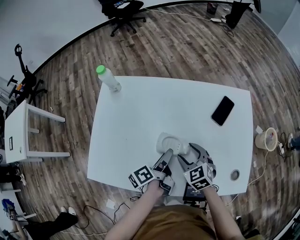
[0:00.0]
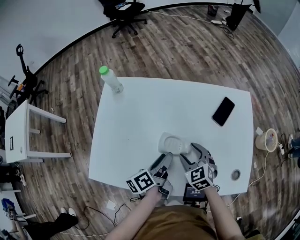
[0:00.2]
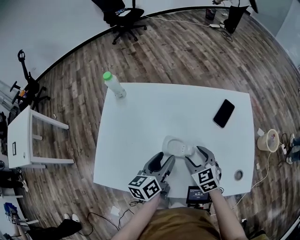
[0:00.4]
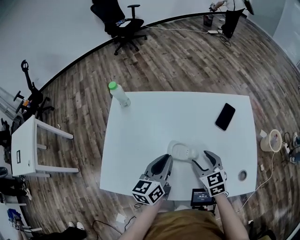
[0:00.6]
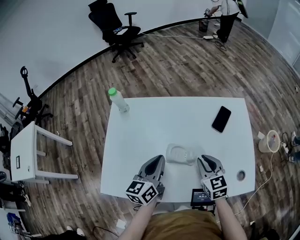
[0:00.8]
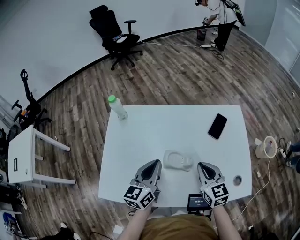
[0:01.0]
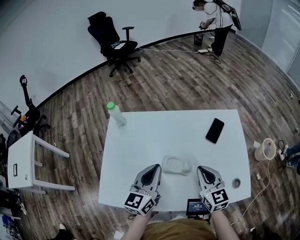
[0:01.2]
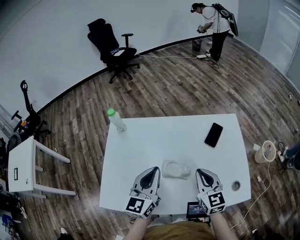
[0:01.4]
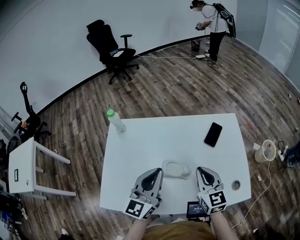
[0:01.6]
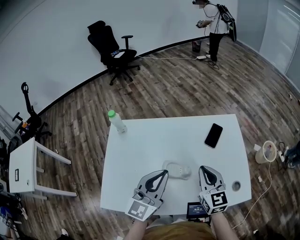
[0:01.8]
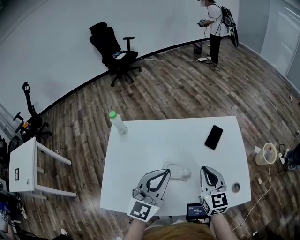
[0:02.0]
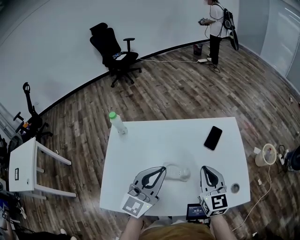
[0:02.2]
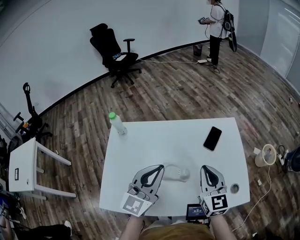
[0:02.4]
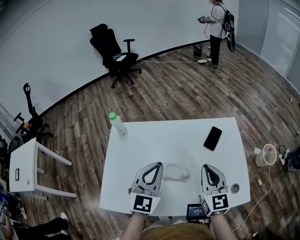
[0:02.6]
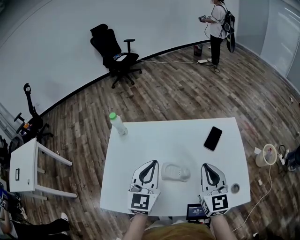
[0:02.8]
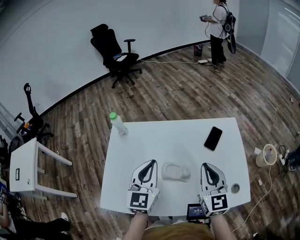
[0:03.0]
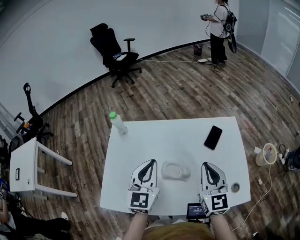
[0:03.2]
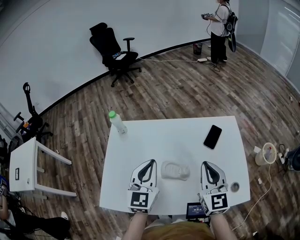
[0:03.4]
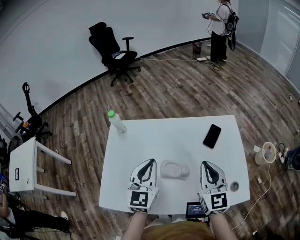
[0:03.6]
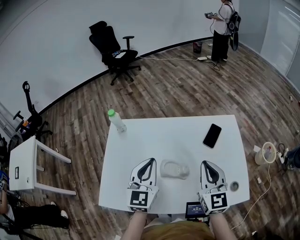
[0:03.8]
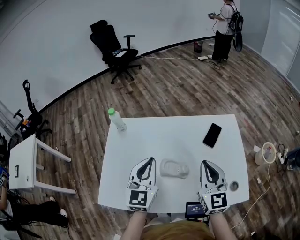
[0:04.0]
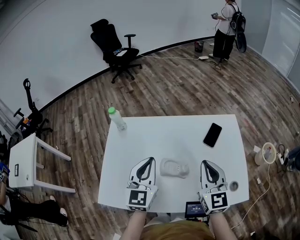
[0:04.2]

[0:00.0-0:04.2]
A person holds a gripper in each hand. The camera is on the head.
0.0 to 1.4 s: The two grippers go approximately 15 cm upward. The right gripper swivels roughly 40 degrees, and closes; the left gripper rolls clockwise, seen from behind, by roughly 80 degrees, and closes up.
1.4 to 2.8 s: The right gripper shifts roughly 10 cm upward.
2.8 to 4.2 s: Both grippers stay about where they are.

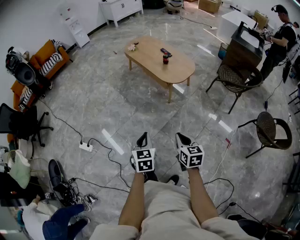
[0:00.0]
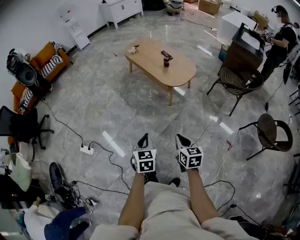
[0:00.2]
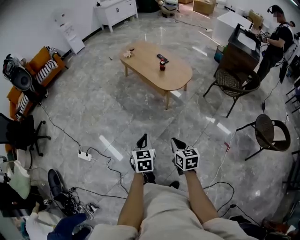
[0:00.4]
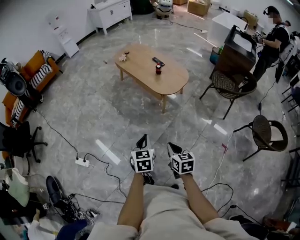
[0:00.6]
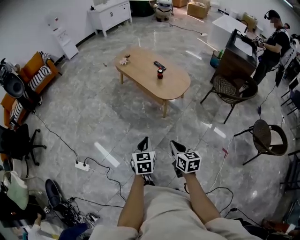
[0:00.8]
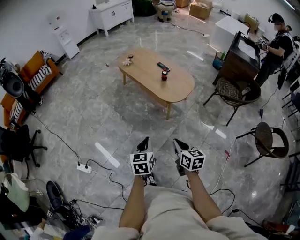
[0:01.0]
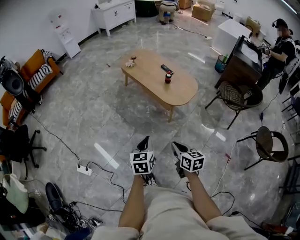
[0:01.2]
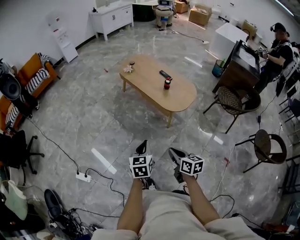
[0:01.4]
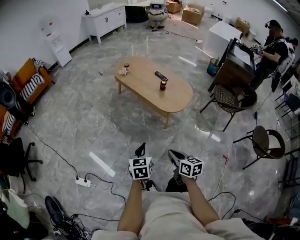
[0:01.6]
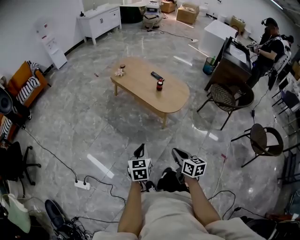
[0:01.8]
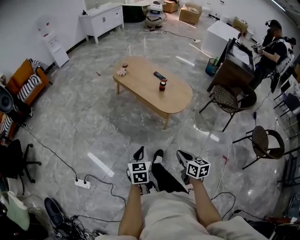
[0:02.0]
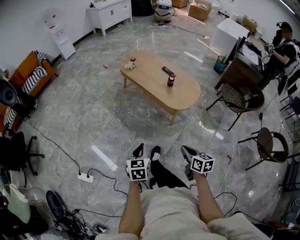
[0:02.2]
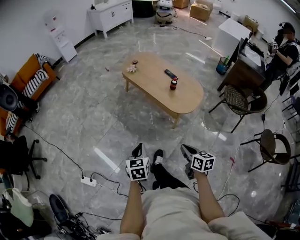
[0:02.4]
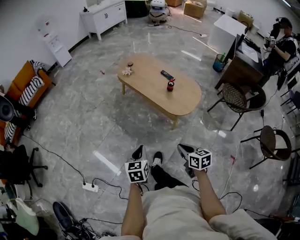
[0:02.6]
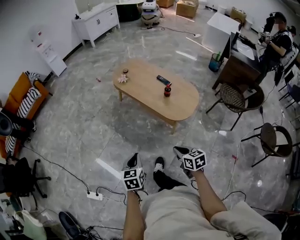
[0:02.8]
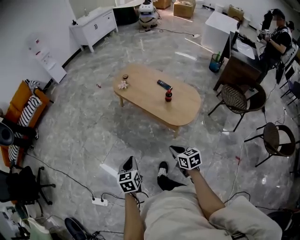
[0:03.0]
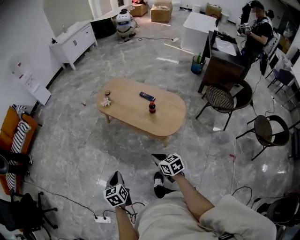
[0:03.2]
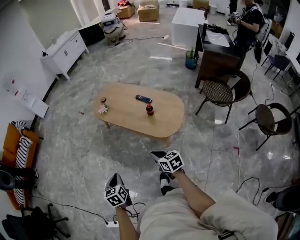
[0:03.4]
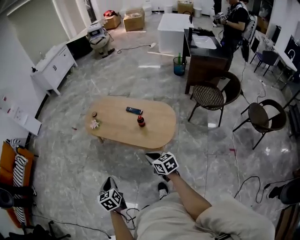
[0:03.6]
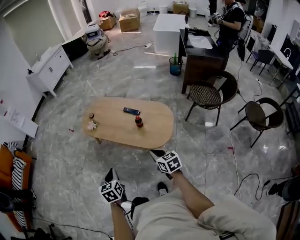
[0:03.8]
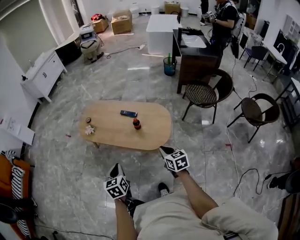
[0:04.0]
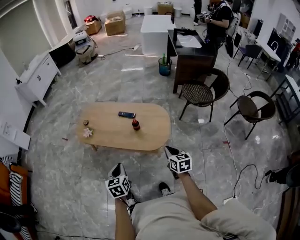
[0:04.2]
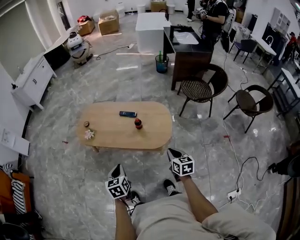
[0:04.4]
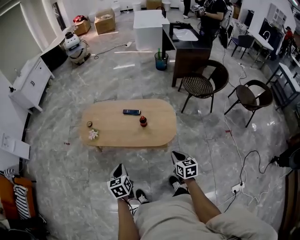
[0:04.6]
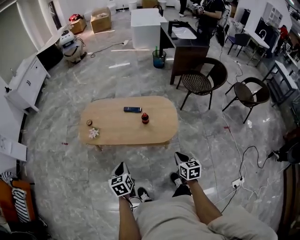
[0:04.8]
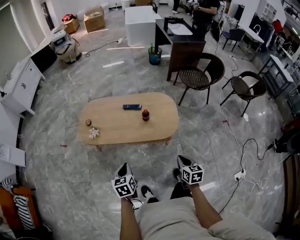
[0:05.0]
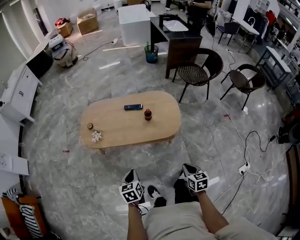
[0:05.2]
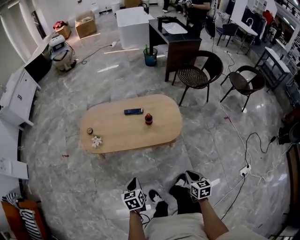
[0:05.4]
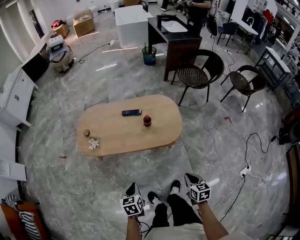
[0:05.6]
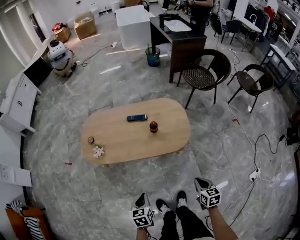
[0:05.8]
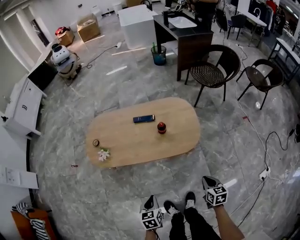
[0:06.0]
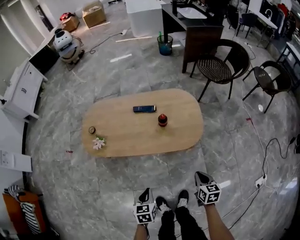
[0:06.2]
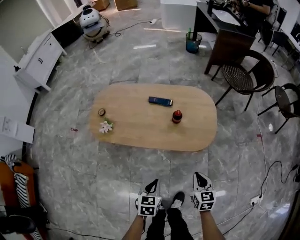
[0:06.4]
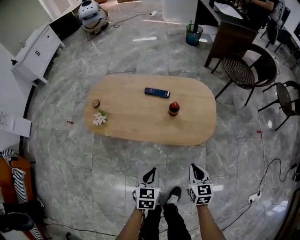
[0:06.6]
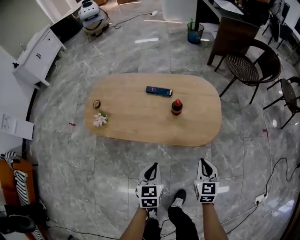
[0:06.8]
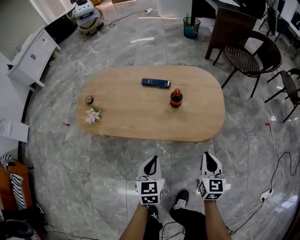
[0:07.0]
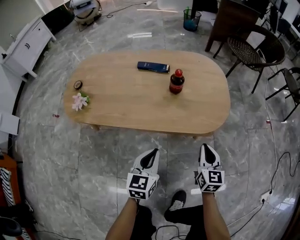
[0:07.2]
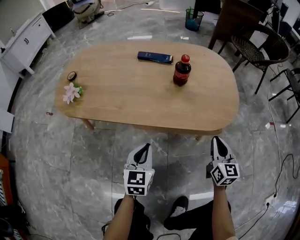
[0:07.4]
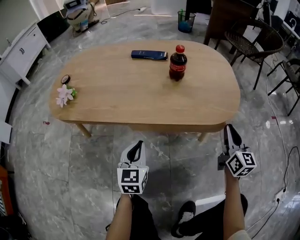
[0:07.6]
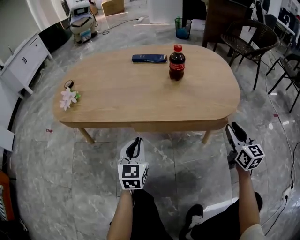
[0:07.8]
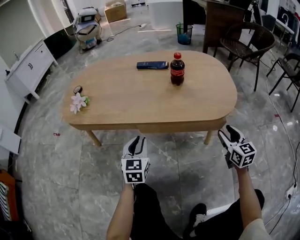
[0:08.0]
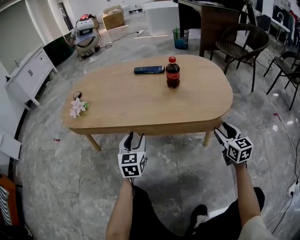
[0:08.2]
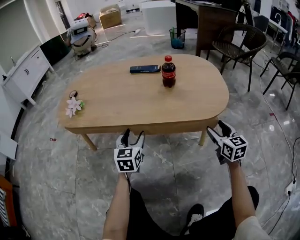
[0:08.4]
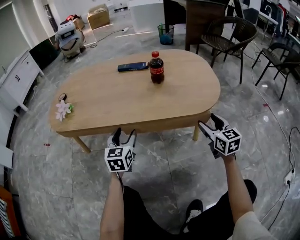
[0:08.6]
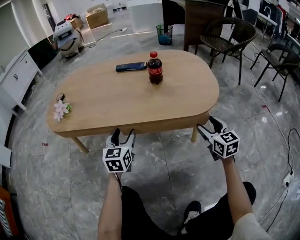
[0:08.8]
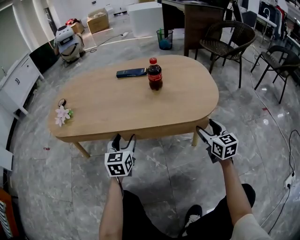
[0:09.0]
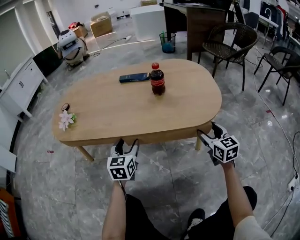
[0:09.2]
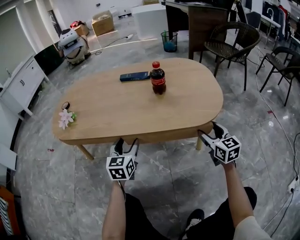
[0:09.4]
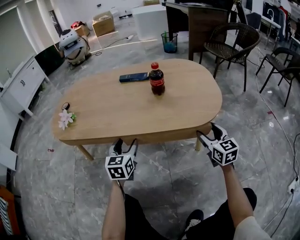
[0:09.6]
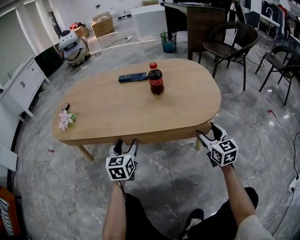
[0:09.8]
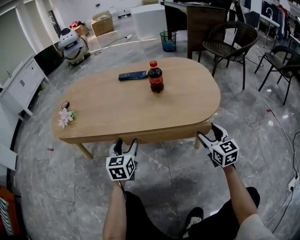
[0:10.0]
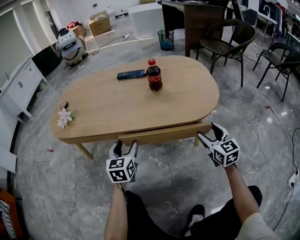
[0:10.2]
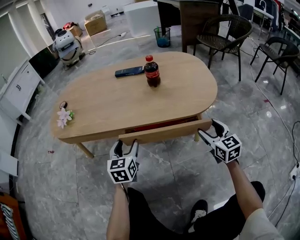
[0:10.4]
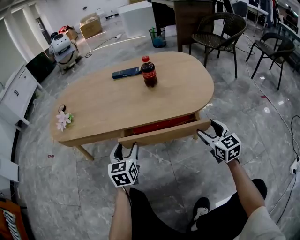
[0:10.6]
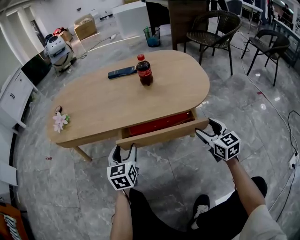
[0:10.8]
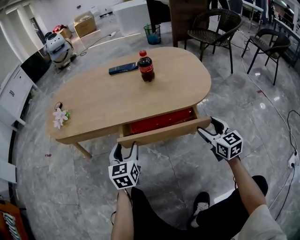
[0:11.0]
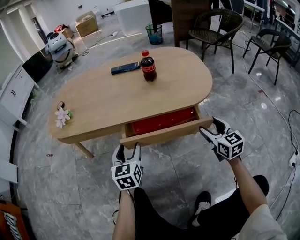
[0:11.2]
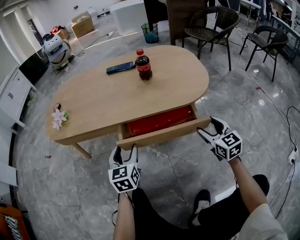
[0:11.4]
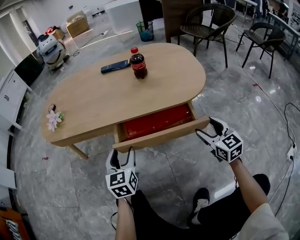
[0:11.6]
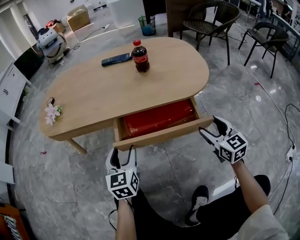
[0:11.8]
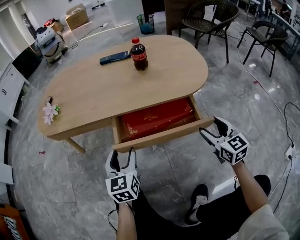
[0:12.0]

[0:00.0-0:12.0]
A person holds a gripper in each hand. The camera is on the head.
0.0 to 1.6 s: The left gripper heads forward, covering about 25 cm, while the right gripper moves forward and to the left, approximately 25 cm.
1.6 to 3.0 s: The left gripper heads forward and to the left, covering about 20 cm. Meanwhile the right gripper heads forward, covering about 20 cm.
3.0 to 4.4 s: The right gripper moves about 15 cm, and rotates about 40 degrees. The left gripper changes place by roughly 25 cm, and changes its angle by some 30 degrees.
4.4 to 6.0 s: The right gripper shifts approximately 20 cm downward, backward and to the left, and swivels some 20 degrees. The left gripper travels downward and to the left by about 20 cm, and changes its angle by roughly 20 degrees.
6.0 to 7.6 s: The grippers both shift downward and forward by approximately 35 cm. The left gripper changes its angle by roughly 30 degrees. Meanwhile the right gripper tips its fingers upward by some 40 degrees.
7.6 to 9.0 s: The right gripper ends up roughly 5 cm from where it was, and opens its fingers. Meanwhile the left gripper shifts about 5 cm forward, and opens up.
9.0 to 10.4 s: The grippers stay close to where they were, moving slightly.
10.4 to 12.0 s: The grippers both shift backward by approximately 10 cm.

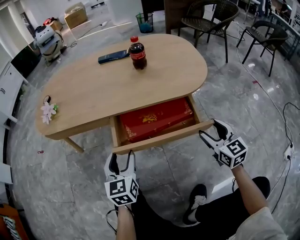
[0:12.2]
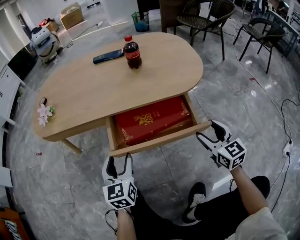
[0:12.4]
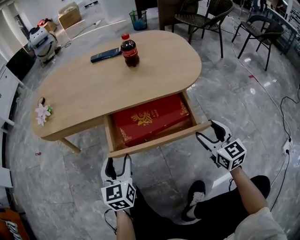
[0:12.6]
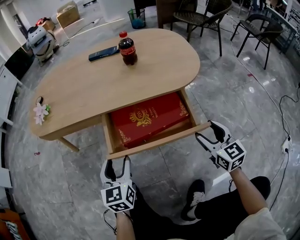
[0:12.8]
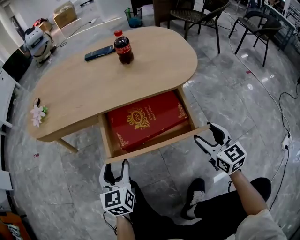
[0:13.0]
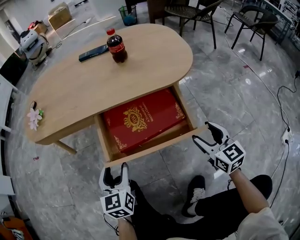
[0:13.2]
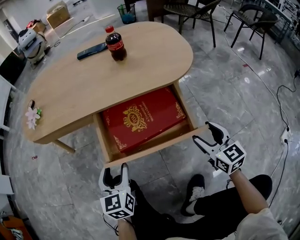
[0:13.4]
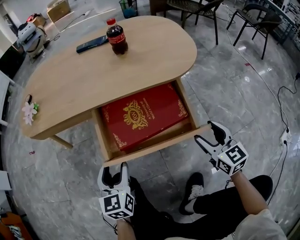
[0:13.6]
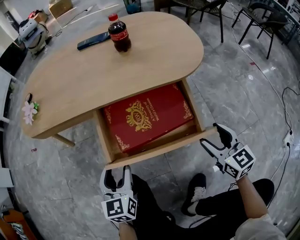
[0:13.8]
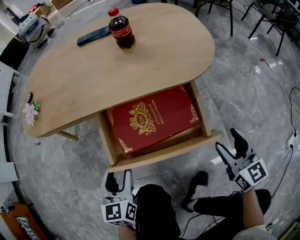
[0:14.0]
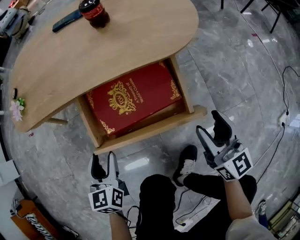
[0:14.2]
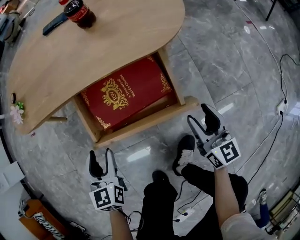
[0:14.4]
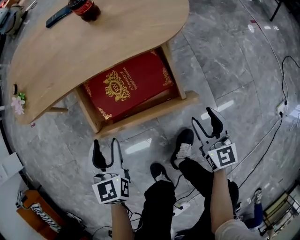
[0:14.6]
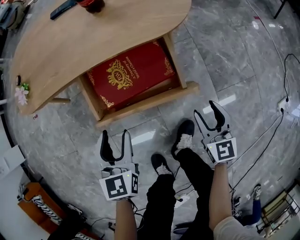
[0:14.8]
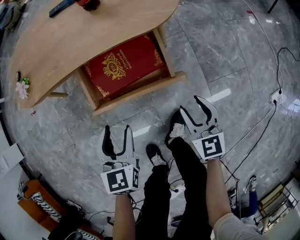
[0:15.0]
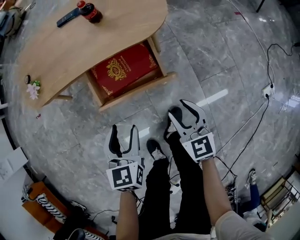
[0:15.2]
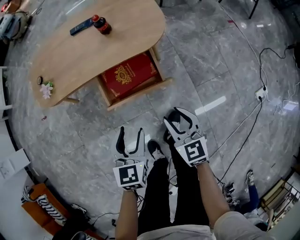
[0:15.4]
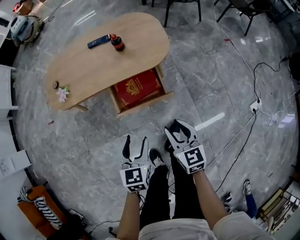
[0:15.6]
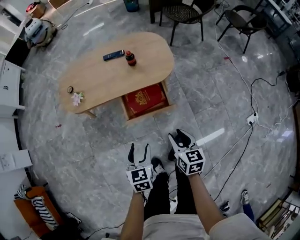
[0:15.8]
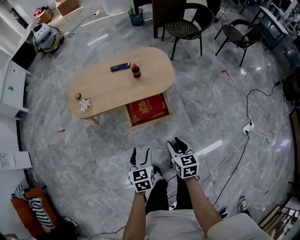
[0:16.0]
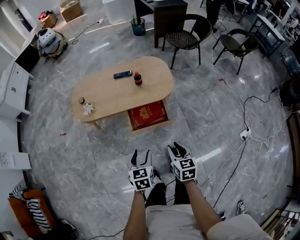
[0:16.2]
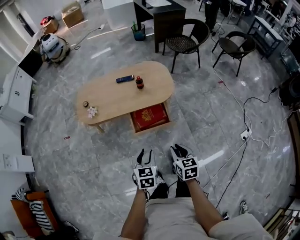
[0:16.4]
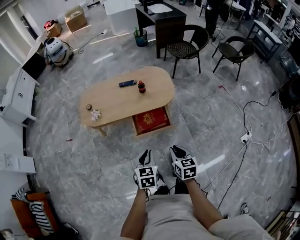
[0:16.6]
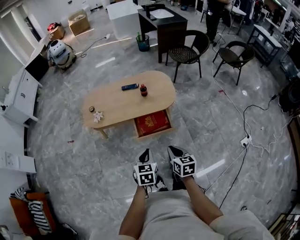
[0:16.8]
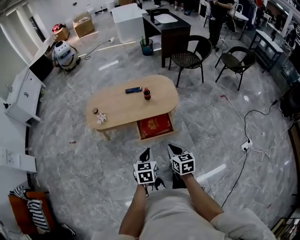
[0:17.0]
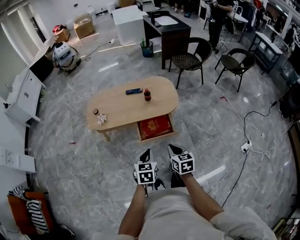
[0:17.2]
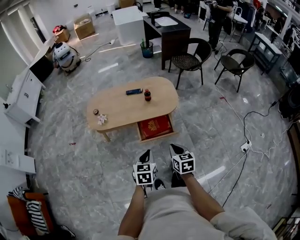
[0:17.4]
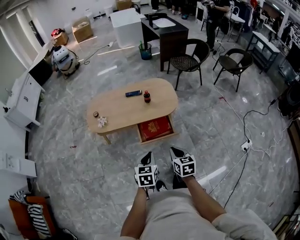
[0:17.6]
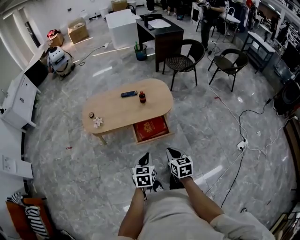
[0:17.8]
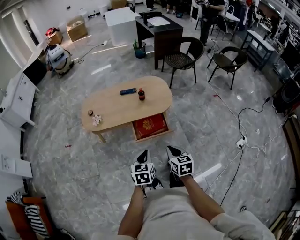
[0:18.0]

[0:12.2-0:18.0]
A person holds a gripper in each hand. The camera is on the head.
12.2 to 13.6 s: The grippers both shift backward by about 5 cm.
13.6 to 15.0 s: The left gripper heads upward, to the right and backward, covering roughly 20 cm, while the right gripper moves backward and upward, some 10 cm.
15.0 to 16.6 s: The left gripper travels upward and backward by approximately 40 cm, and closes. Meanwhile the right gripper goes some 40 cm upward, changes its angle by some 20 degrees, and closes.
16.6 to 18.0 s: The grippers stay close to where they were, moving slightly.

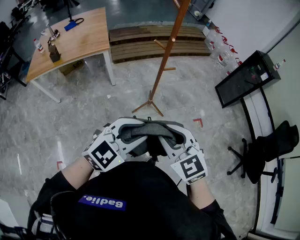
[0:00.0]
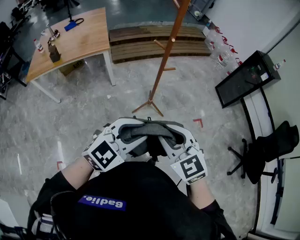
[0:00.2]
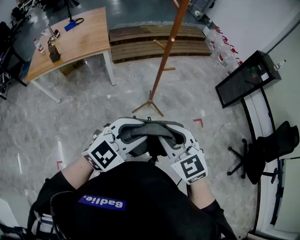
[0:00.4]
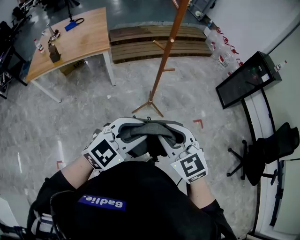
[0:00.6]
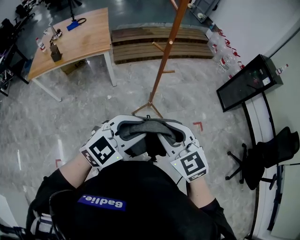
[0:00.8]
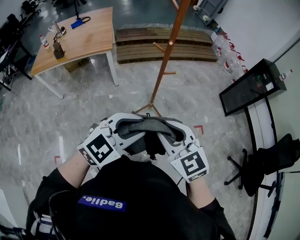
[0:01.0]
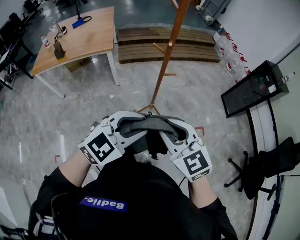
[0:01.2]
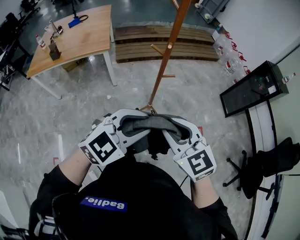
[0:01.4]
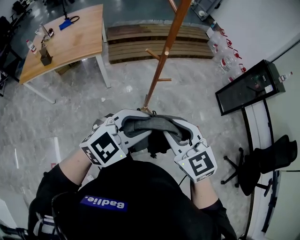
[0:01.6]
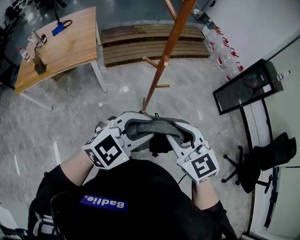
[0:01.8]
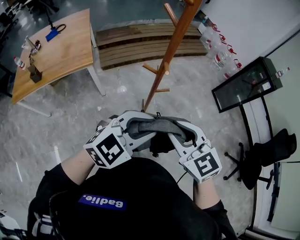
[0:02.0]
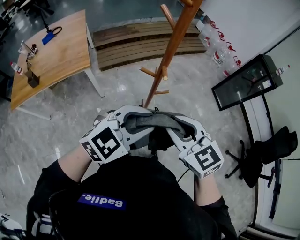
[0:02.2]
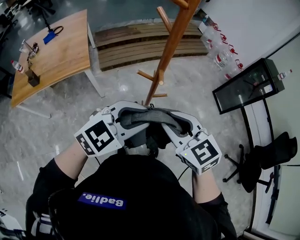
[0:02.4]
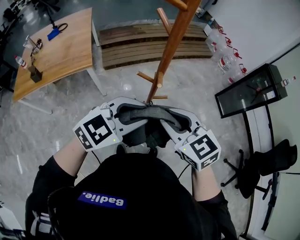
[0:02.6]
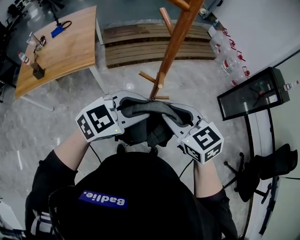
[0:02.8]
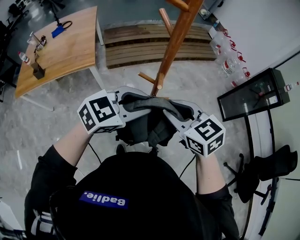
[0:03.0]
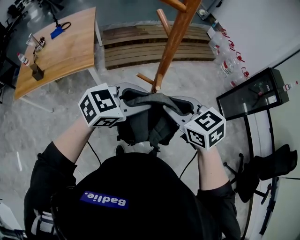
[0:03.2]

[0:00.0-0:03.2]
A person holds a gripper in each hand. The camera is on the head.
0.0 to 1.6 s: Both grippers travel together forward, about 15 cm.
1.6 to 3.2 s: Both grippers move forward, roughly 25 cm.
